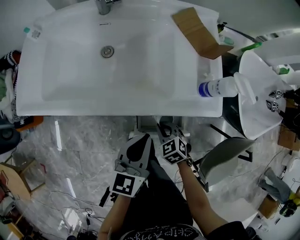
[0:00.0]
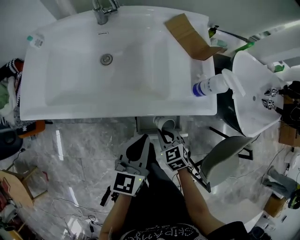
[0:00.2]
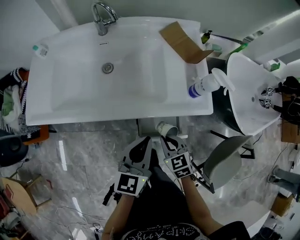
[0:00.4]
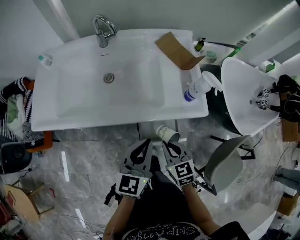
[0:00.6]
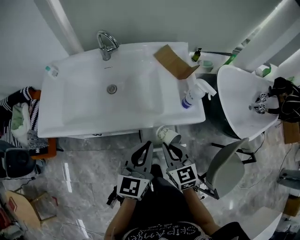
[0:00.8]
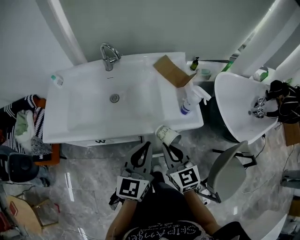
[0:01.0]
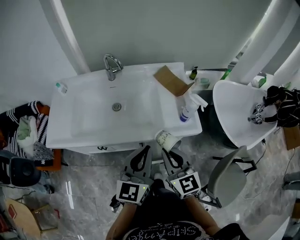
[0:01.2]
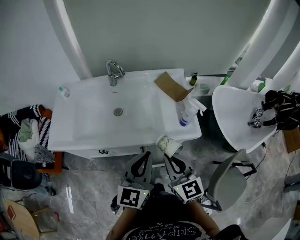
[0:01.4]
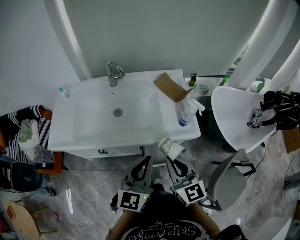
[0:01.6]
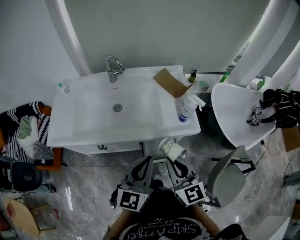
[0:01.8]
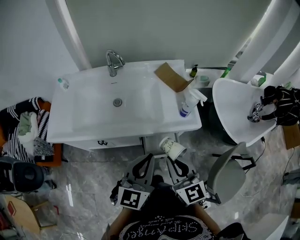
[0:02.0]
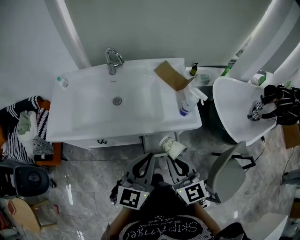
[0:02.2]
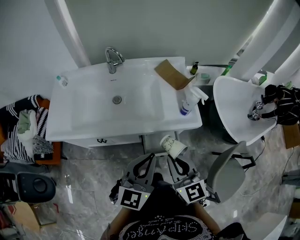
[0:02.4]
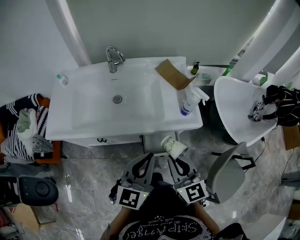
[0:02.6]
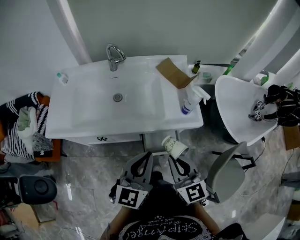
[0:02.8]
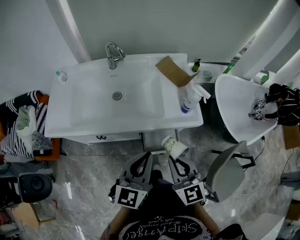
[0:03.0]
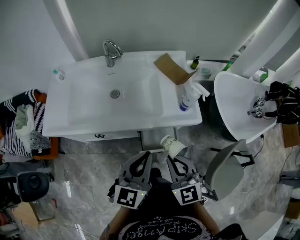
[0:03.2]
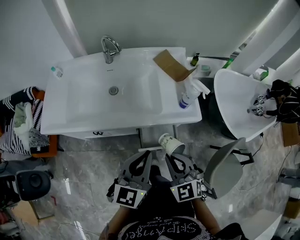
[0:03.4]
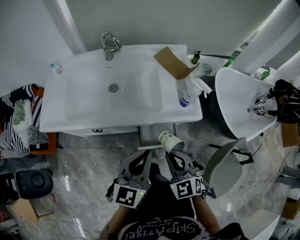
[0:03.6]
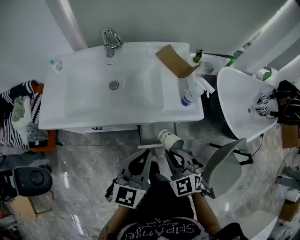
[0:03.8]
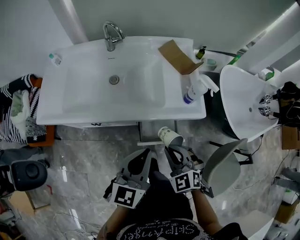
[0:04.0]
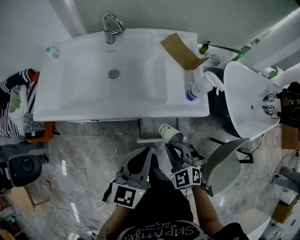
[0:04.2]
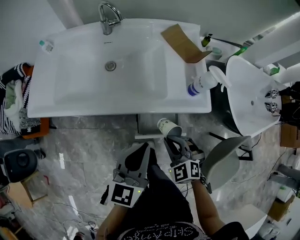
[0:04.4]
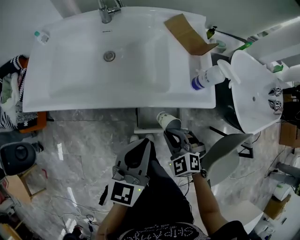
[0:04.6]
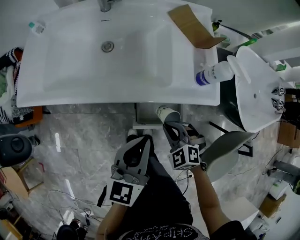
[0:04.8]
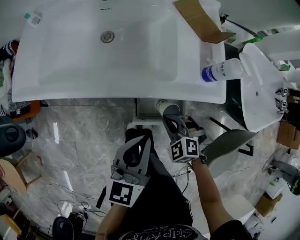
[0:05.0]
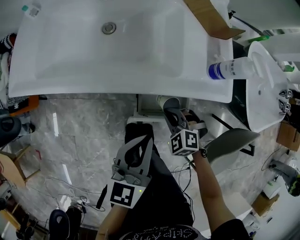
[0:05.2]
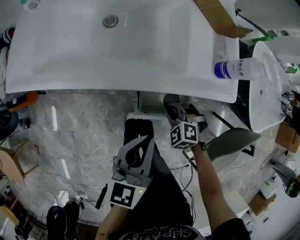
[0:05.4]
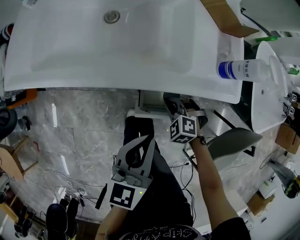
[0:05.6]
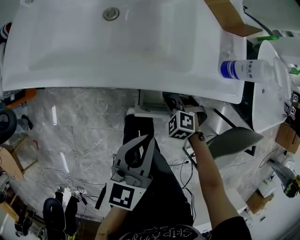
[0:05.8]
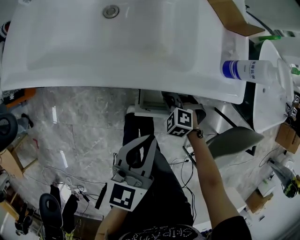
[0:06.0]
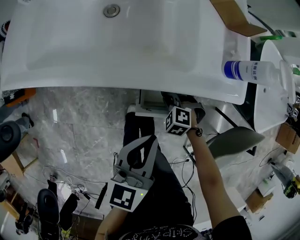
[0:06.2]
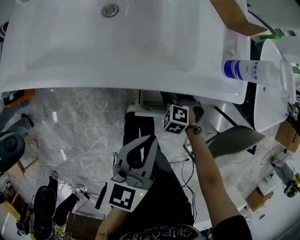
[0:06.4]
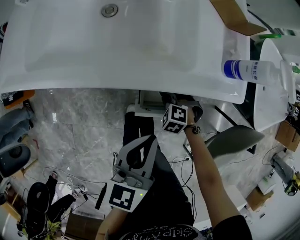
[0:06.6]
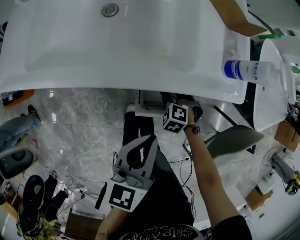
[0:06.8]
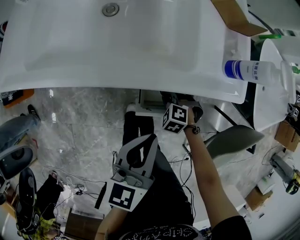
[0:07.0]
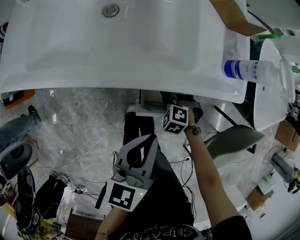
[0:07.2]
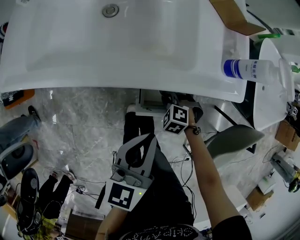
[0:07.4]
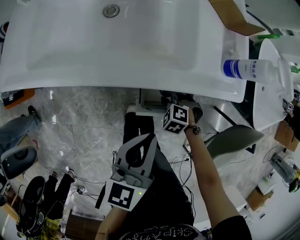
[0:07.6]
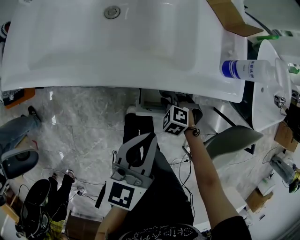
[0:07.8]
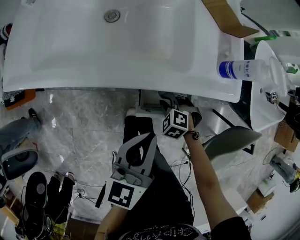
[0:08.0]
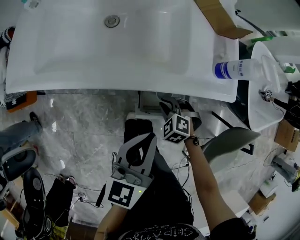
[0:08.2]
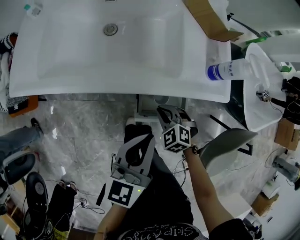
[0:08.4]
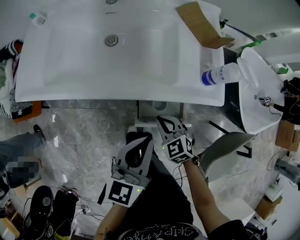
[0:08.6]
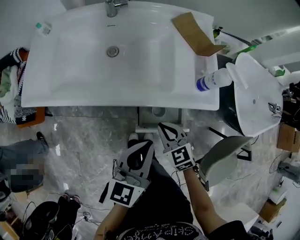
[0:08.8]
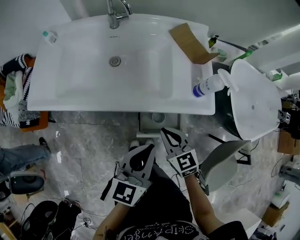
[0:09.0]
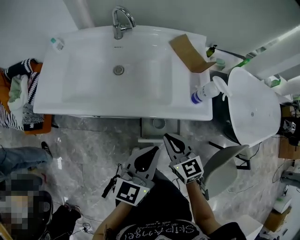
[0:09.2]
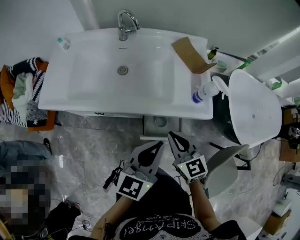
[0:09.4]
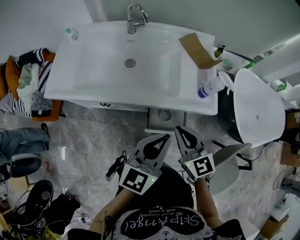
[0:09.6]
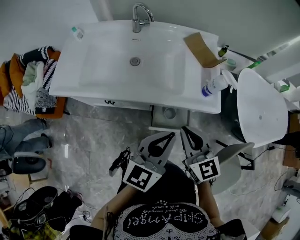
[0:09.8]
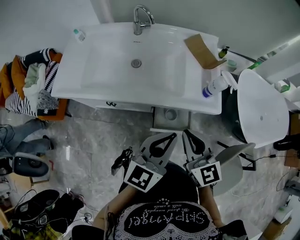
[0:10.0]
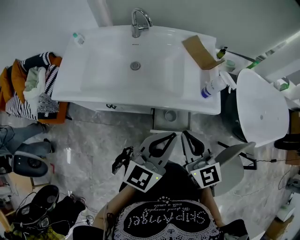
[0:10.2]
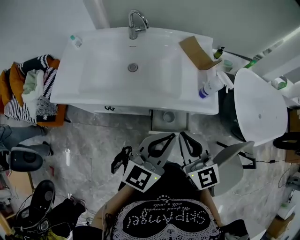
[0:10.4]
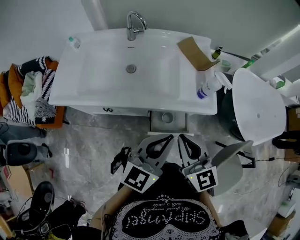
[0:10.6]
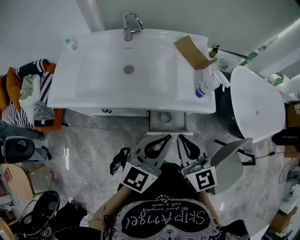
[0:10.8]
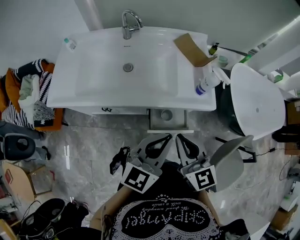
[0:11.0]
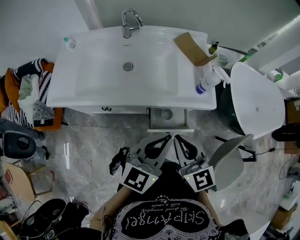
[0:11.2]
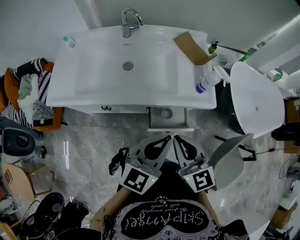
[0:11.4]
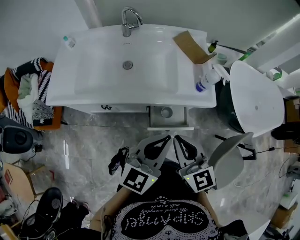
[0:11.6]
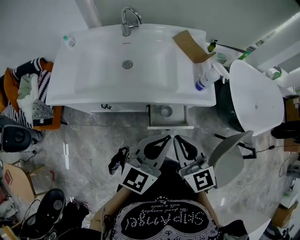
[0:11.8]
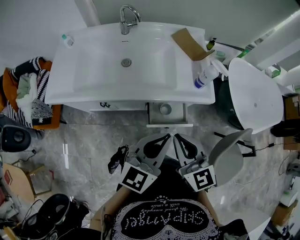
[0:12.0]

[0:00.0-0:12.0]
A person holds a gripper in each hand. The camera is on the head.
0:00.0 to 0:01.6: The left gripper shifts roughly 20 cm upward, and changes its angle by roughly 20 degrees, while the right gripper goes some 35 cm upward, and tilts its fingers about 50 degrees upward.
0:01.6 to 0:03.0: There are only small adjustments of the grippers.
0:03.0 to 0:04.4: The right gripper travels downward by roughly 15 cm, and angles its fingers downward, by about 30 degrees. The left gripper shifts about 5 cm downward.
0:04.4 to 0:06.0: The right gripper moves downward, roughly 25 cm, and swivels some 30 degrees, while the left gripper goes some 10 cm downward.
0:06.0 to 0:07.6: The grippers stay close to where they were, moving slightly.
0:07.6 to 0:09.0: The left gripper travels upward by some 10 cm. The right gripper travels upward by about 25 cm, and tips its fingers upward by some 40 degrees.
0:09.0 to 0:10.4: The left gripper is displaced upward by approximately 10 cm, and swivels some 20 degrees. The right gripper shifts roughly 20 cm upward, and swivels roughly 20 degrees.
0:10.4 to 0:12.0: There are only small adjustments of the grippers.

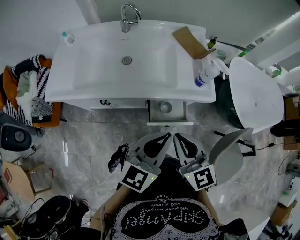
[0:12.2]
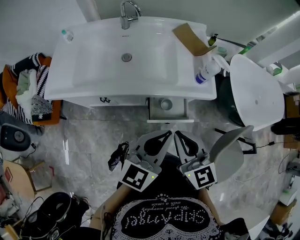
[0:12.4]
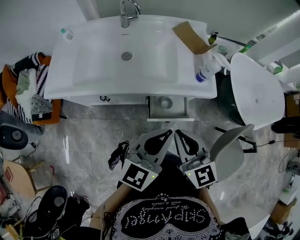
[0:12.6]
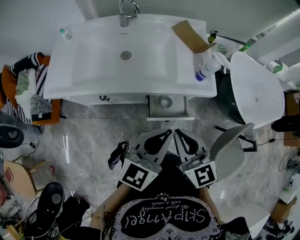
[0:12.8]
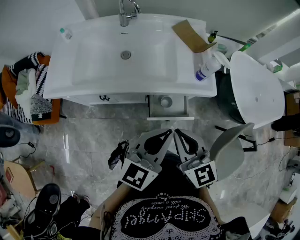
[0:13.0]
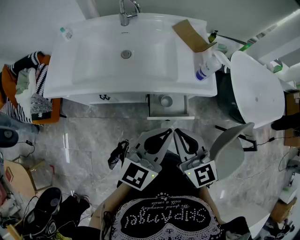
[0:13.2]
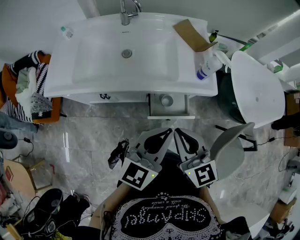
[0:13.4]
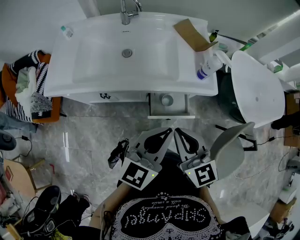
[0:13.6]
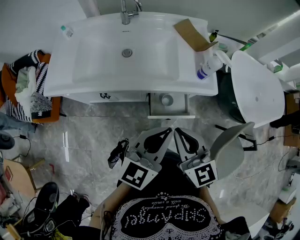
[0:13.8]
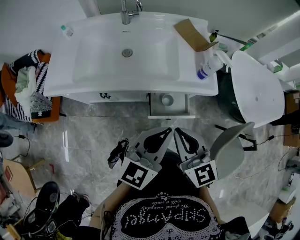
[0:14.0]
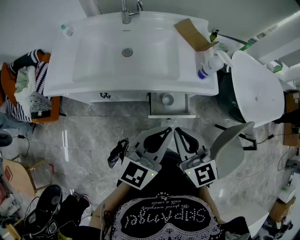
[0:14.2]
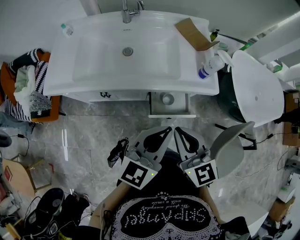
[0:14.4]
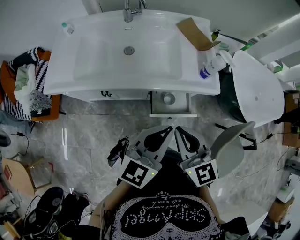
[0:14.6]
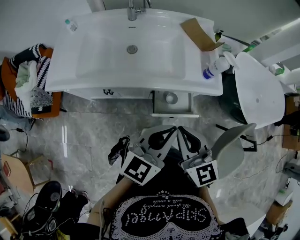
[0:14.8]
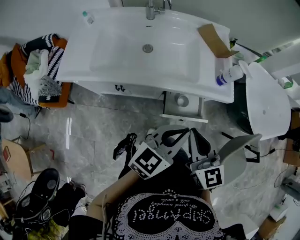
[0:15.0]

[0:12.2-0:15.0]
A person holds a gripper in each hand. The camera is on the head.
0:12.2 to 0:13.6: The two grippers keep their place.
0:13.6 to 0:15.0: The grippers stay close to where they were, moving slightly.

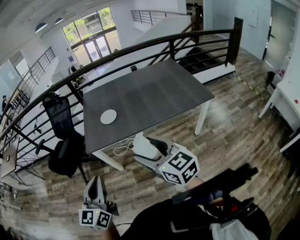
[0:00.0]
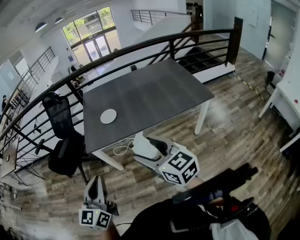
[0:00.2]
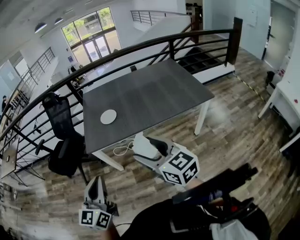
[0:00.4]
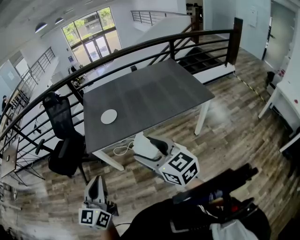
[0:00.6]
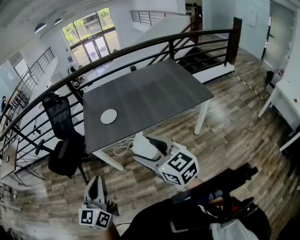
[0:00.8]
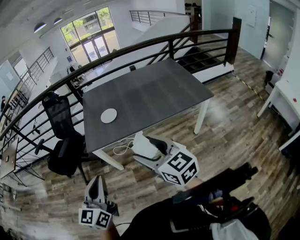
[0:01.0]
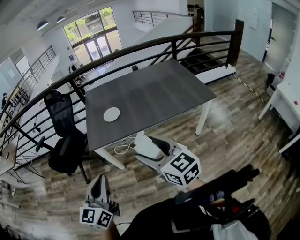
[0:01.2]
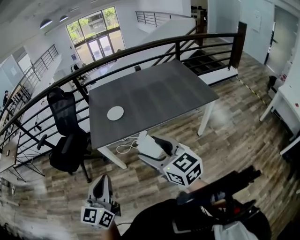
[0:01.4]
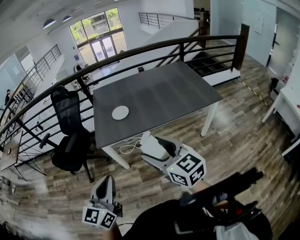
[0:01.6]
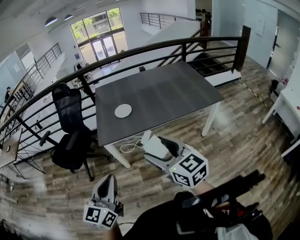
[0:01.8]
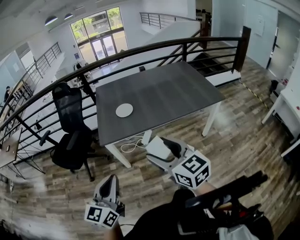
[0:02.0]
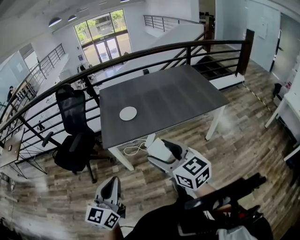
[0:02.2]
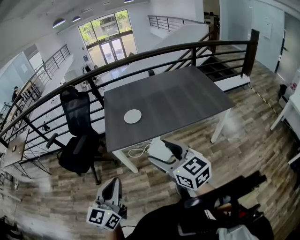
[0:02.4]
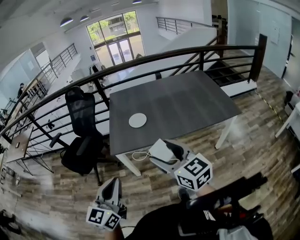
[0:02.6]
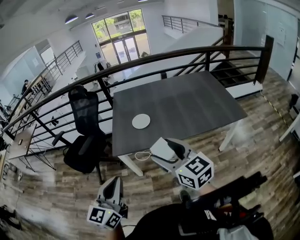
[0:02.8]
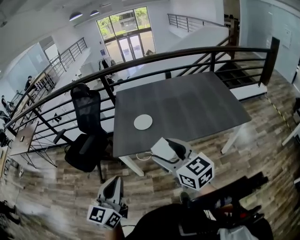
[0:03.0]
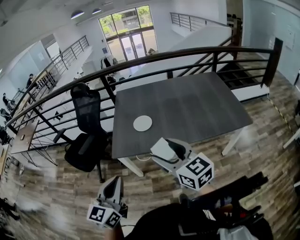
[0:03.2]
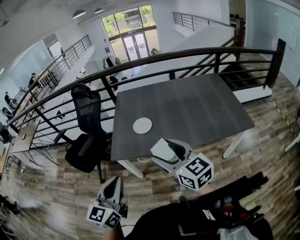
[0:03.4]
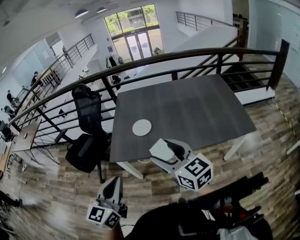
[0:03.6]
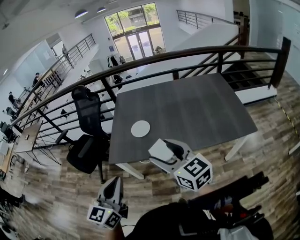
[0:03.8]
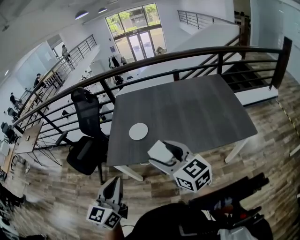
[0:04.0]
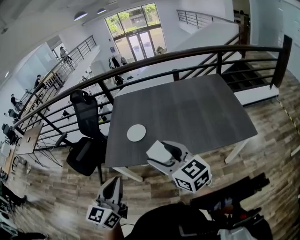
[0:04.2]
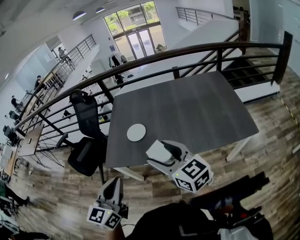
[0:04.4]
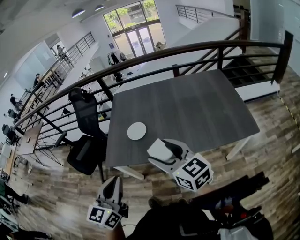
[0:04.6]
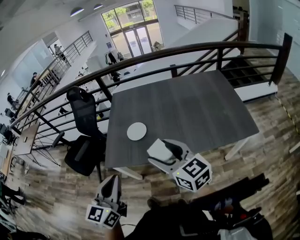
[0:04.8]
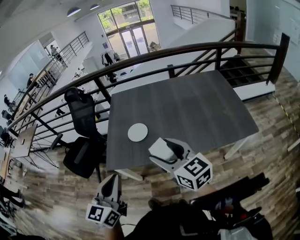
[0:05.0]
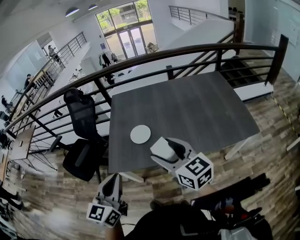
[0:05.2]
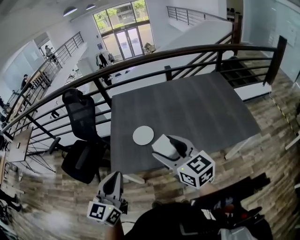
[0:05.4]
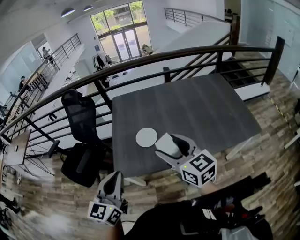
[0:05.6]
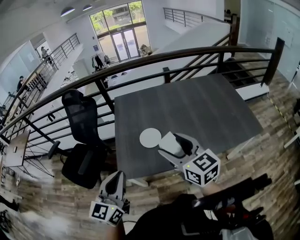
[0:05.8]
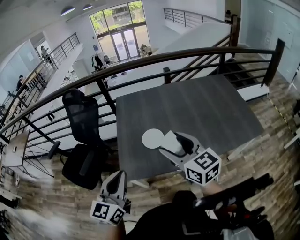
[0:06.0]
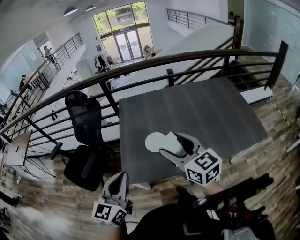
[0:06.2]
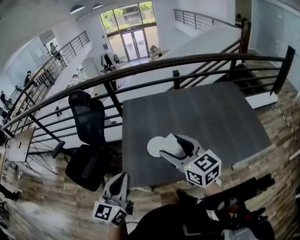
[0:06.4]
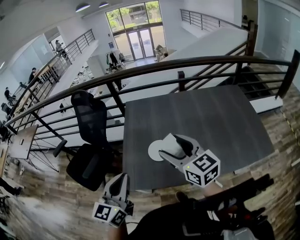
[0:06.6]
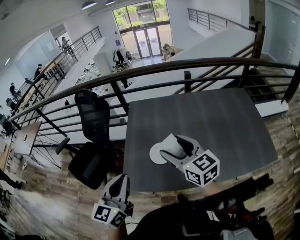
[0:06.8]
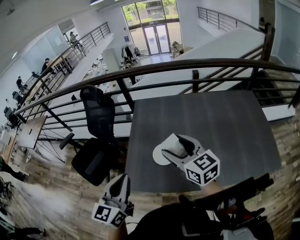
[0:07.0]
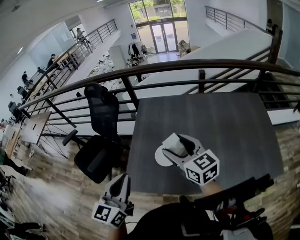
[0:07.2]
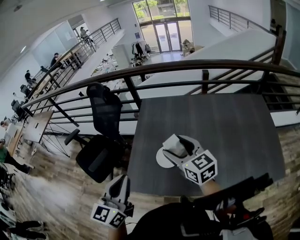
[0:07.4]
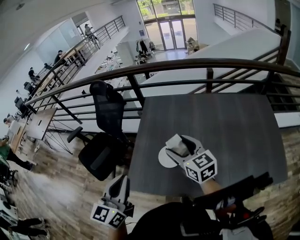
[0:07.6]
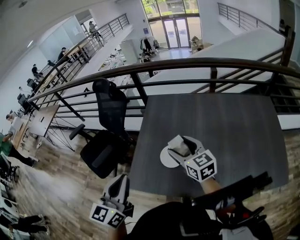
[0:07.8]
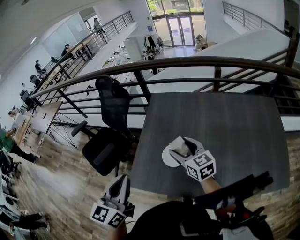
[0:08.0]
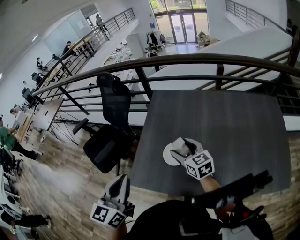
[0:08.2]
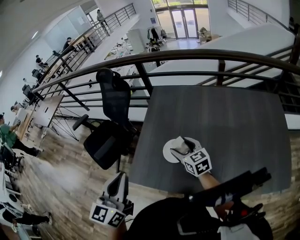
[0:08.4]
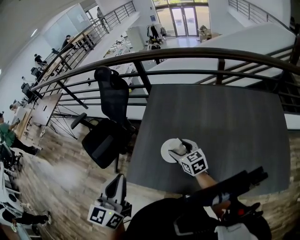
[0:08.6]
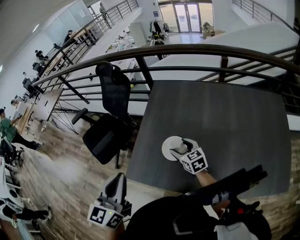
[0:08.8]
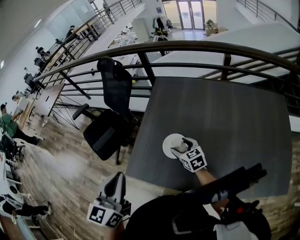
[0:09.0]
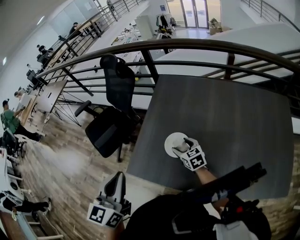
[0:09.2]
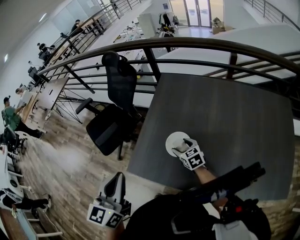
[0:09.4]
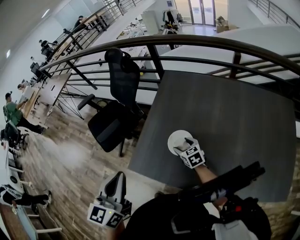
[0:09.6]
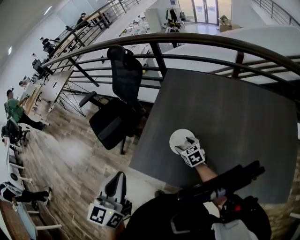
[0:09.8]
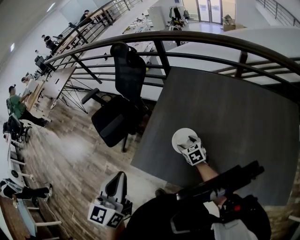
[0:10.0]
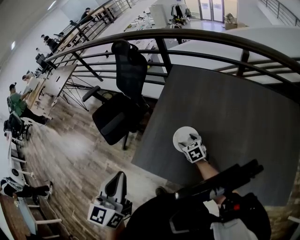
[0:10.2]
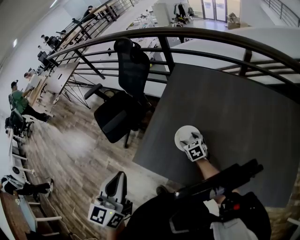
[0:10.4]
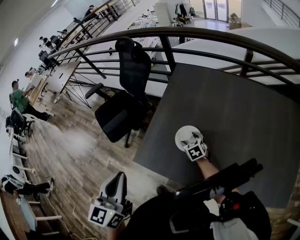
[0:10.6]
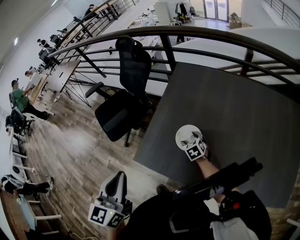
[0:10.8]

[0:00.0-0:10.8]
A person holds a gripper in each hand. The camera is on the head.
0:00.0 to 0:01.6: Both grippers move to the left, approximately 5 cm.
0:01.6 to 0:03.0: The two grippers go about 10 cm forward.
0:03.0 to 0:04.6: Both grippers move to the right and forward, approximately 20 cm.
0:04.6 to 0:06.2: The left gripper moves to the left and forward, approximately 25 cm, while the right gripper moves forward and to the left, roughly 20 cm.
0:06.2 to 0:07.8: The right gripper heads forward and downward, covering approximately 20 cm, while the left gripper moves forward and to the right, about 10 cm.
0:07.8 to 0:09.2: The right gripper heads downward, covering about 20 cm, and turns by roughly 20 degrees.
0:09.2 to 0:10.8: The right gripper moves downward, roughly 10 cm, and turns by about 20 degrees.
